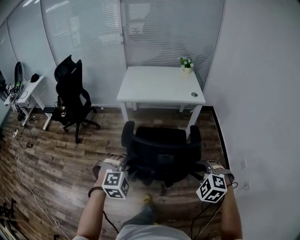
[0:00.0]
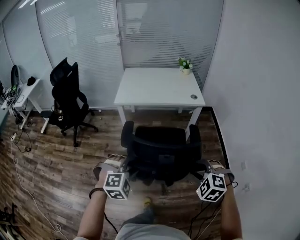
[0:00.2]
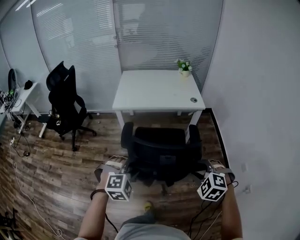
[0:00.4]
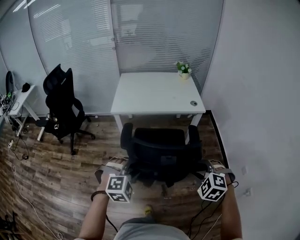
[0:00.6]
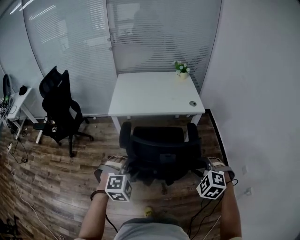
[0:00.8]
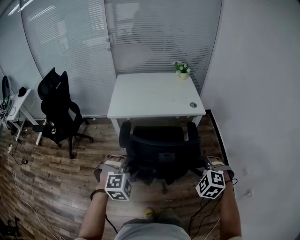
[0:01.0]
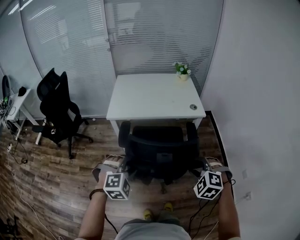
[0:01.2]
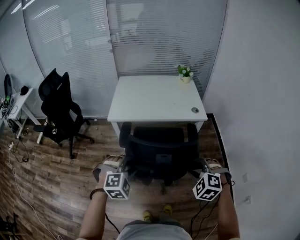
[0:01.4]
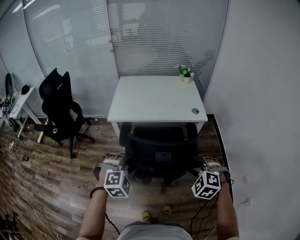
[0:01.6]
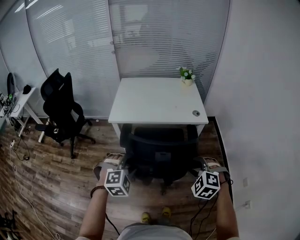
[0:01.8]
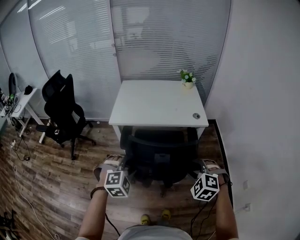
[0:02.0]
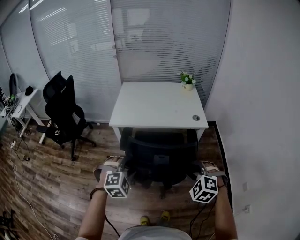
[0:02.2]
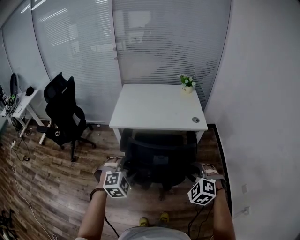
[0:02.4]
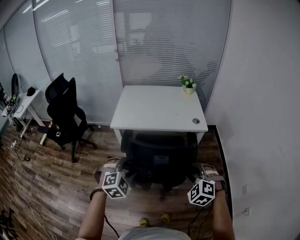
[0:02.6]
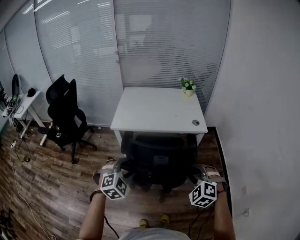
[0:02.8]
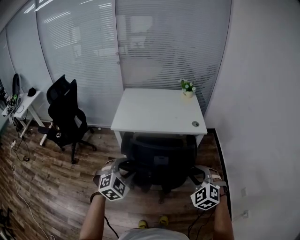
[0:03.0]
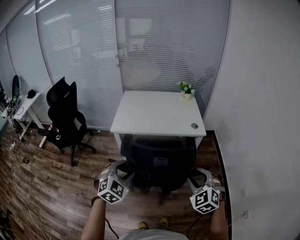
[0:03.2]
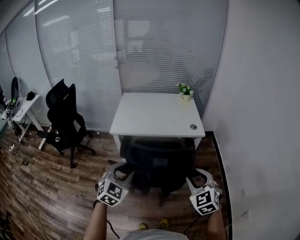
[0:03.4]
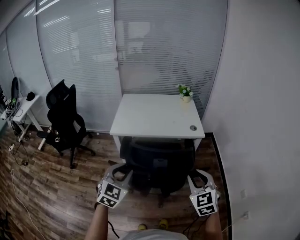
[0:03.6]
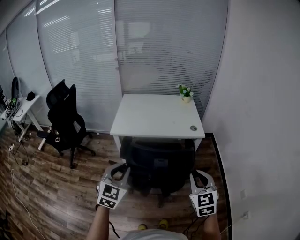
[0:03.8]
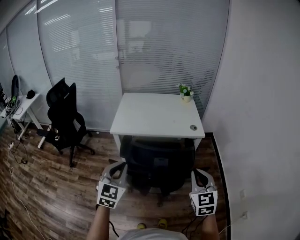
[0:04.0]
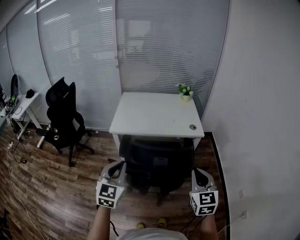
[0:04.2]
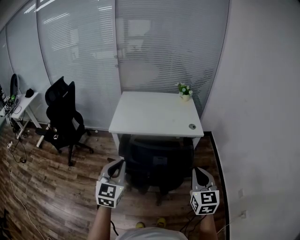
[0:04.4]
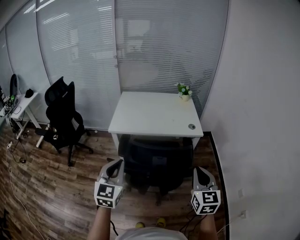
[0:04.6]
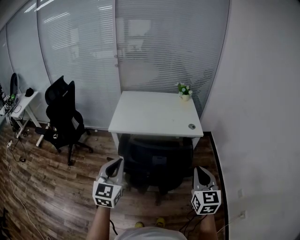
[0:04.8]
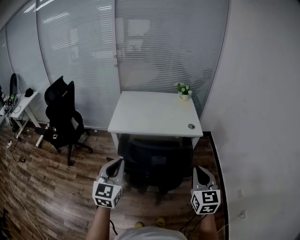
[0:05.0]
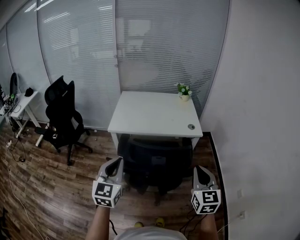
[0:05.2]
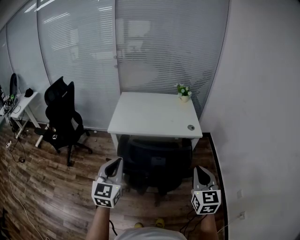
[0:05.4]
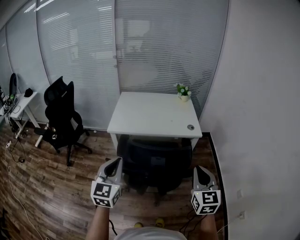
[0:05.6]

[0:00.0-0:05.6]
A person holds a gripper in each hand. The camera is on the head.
0:00.0 to 0:01.4: Both grippers travel together forward, about 25 cm.
0:01.4 to 0:02.8: The grippers make only small movements.
0:02.8 to 0:04.2: Both grippers travel together upward, some 10 cm. The left gripper swivels some 50 degrees, and closes up; the right gripper twists approximately 50 degrees clockwise, seen from behind, and closes.
0:04.2 to 0:05.6: There are only small adjustments of the grippers.

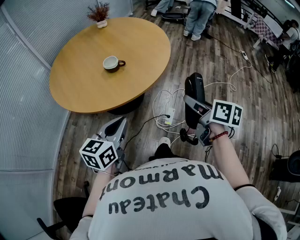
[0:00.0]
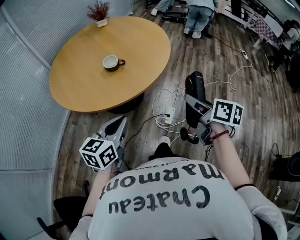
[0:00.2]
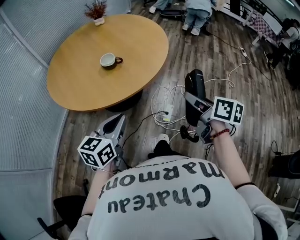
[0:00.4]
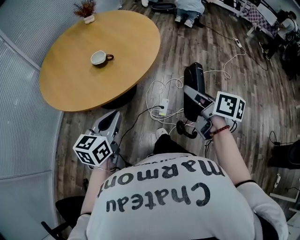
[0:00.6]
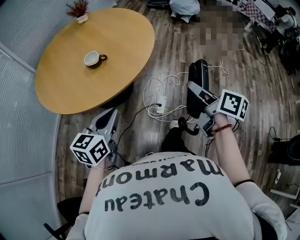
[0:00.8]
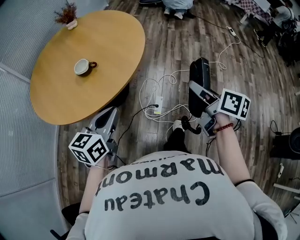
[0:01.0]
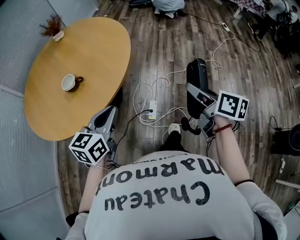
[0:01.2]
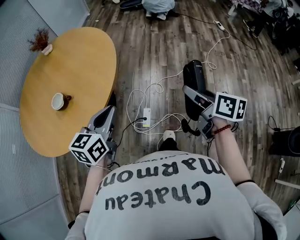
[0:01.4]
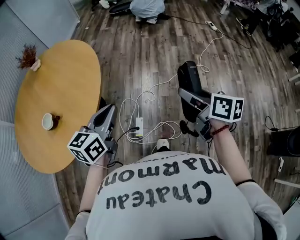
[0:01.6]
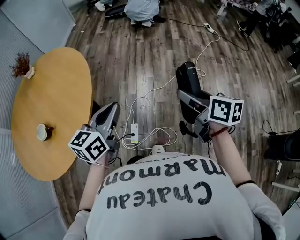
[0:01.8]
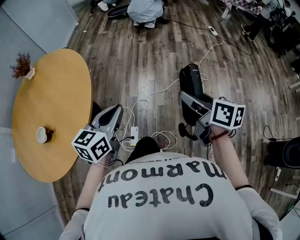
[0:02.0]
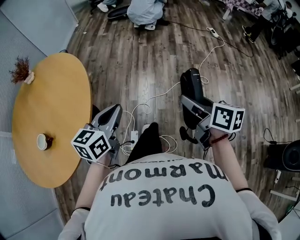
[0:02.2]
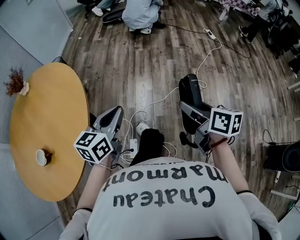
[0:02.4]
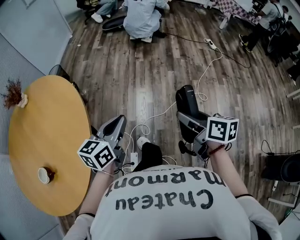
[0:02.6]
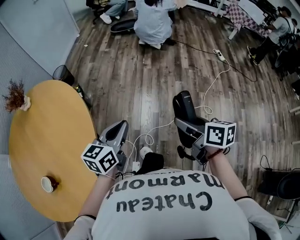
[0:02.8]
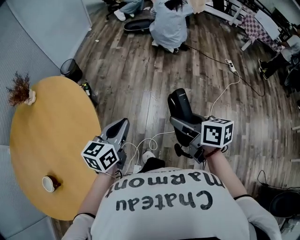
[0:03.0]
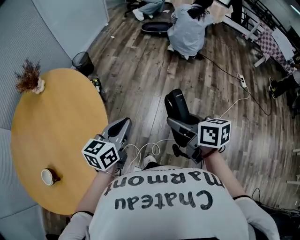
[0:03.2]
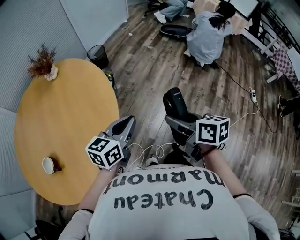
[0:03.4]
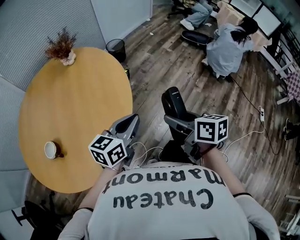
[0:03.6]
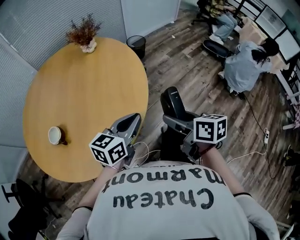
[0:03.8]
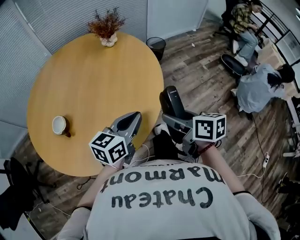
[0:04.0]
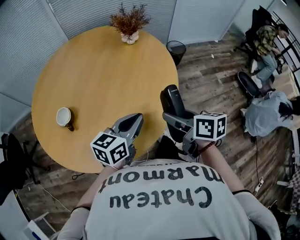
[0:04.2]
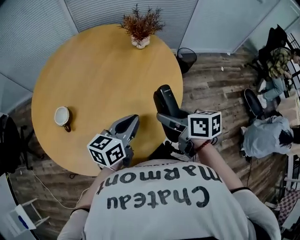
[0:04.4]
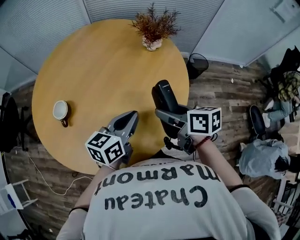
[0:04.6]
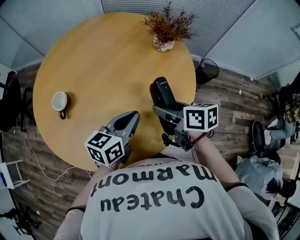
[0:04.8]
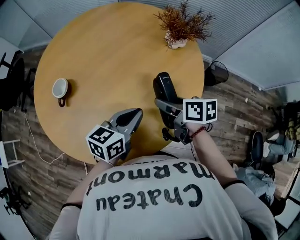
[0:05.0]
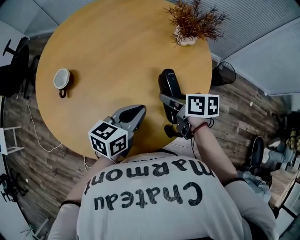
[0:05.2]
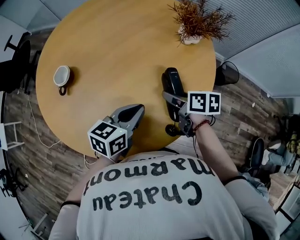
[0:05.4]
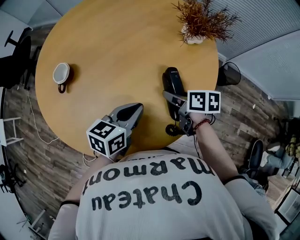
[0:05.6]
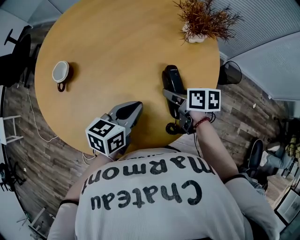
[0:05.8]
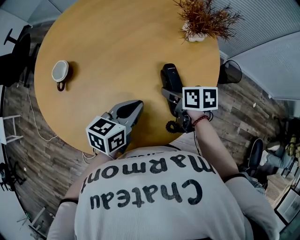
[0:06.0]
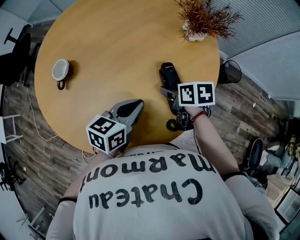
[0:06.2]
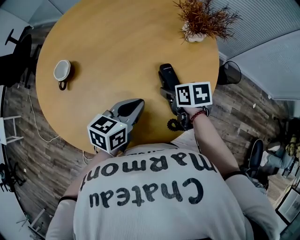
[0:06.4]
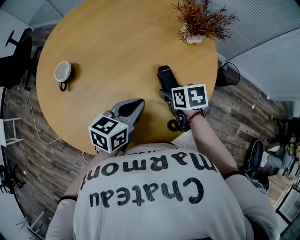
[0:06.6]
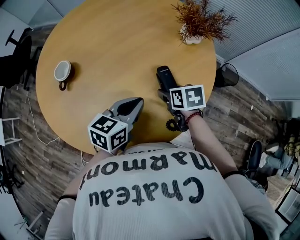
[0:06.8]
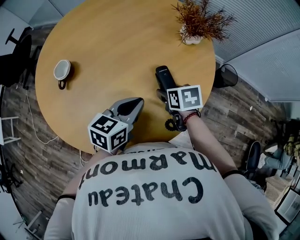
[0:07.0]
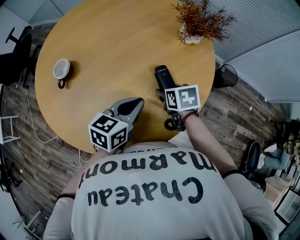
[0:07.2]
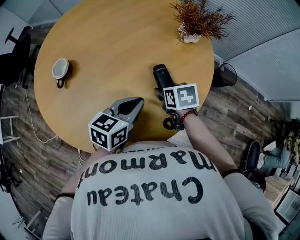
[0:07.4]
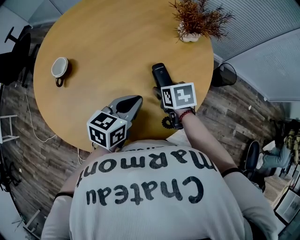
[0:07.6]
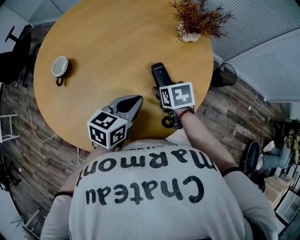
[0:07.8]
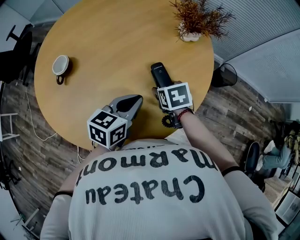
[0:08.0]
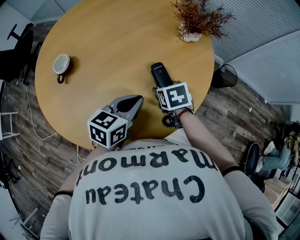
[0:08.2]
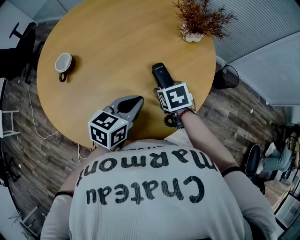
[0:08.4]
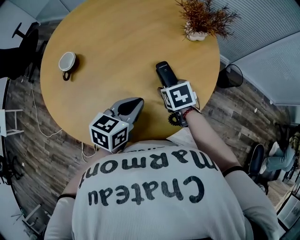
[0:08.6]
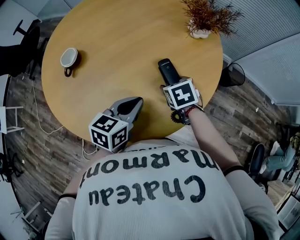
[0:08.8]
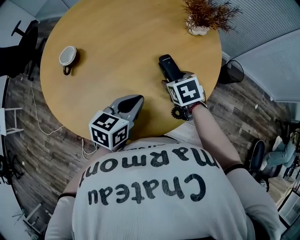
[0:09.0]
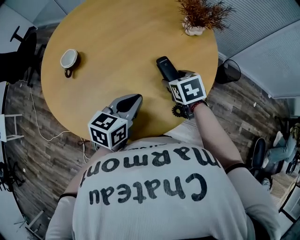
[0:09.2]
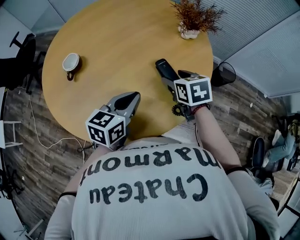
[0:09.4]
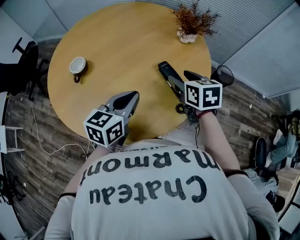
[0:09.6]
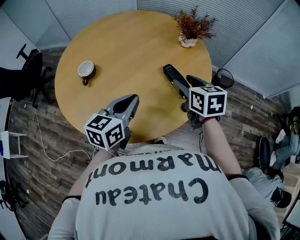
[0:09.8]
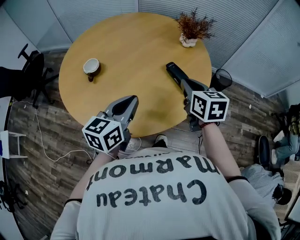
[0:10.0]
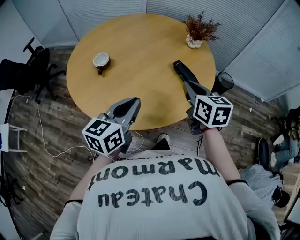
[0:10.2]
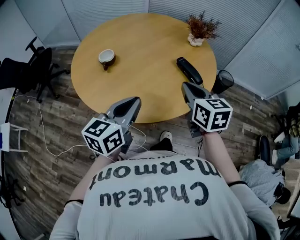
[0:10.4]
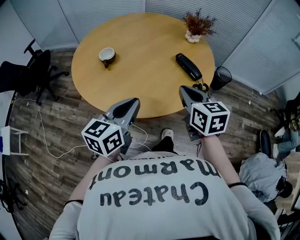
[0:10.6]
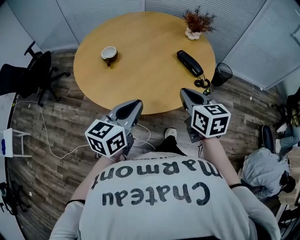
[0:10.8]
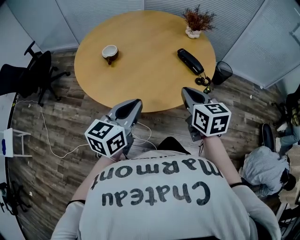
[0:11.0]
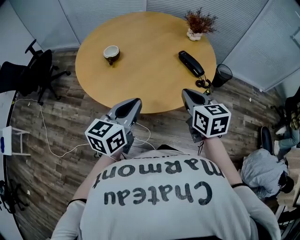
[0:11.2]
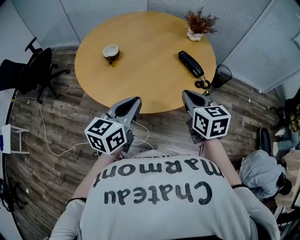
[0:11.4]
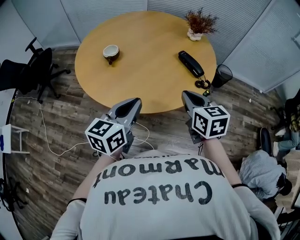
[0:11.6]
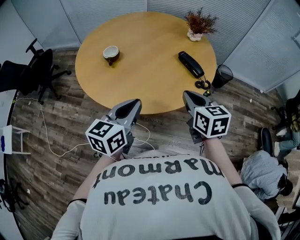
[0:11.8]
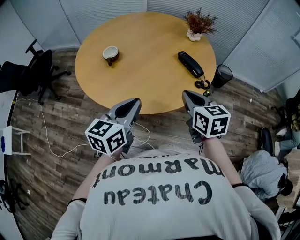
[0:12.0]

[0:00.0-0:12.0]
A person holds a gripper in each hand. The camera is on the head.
0:00.0 to 0:01.6: Both grippers move to the right and forward, some 35 cm.
0:01.6 to 0:03.0: Both grippers travel together forward, some 40 cm.
0:03.0 to 0:04.4: The right gripper shifts by some 50 cm, and rotates some 70 degrees; the left gripper changes place by some 35 cm, and turns by some 60 degrees.
0:04.4 to 0:06.0: The right gripper changes place by some 25 cm, and swivels some 30 degrees; the left gripper moves about 10 cm, and rotates some 30 degrees.
0:06.0 to 0:07.6: The right gripper turns by some 20 degrees.
0:07.6 to 0:09.0: There are only small adjustments of the grippers.
0:09.0 to 0:10.4: The right gripper travels upward and backward by about 30 cm, tips its fingers upward by roughly 30 degrees, and closes. Meanwhile the left gripper travels backward, to the left and upward by approximately 25 cm, and rotates roughly 20 degrees.
0:10.4 to 0:12.0: The right gripper heads backward, covering roughly 5 cm, while the left gripper moves about 5 cm.

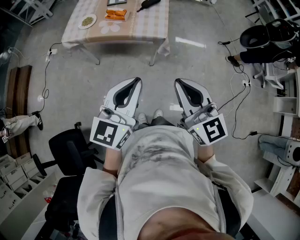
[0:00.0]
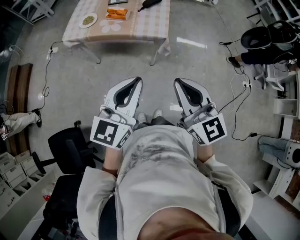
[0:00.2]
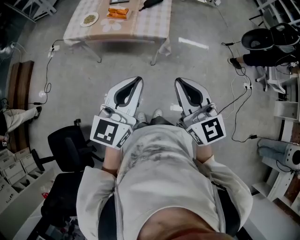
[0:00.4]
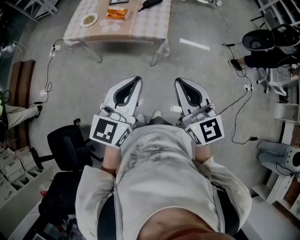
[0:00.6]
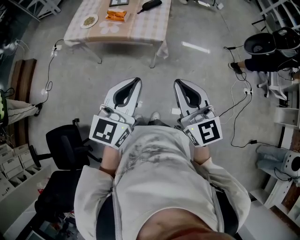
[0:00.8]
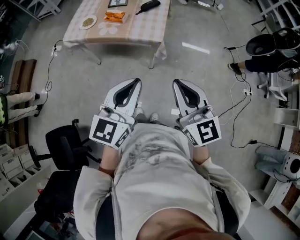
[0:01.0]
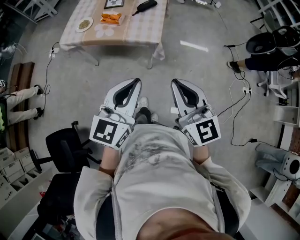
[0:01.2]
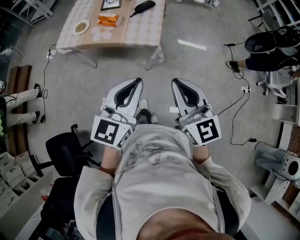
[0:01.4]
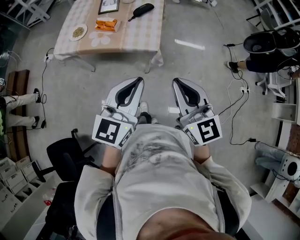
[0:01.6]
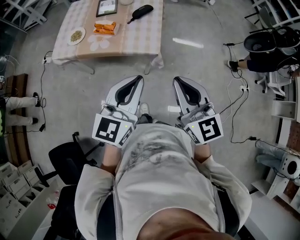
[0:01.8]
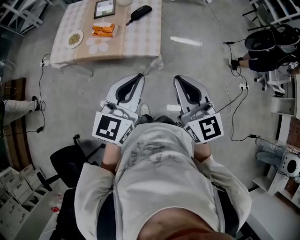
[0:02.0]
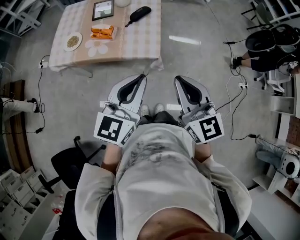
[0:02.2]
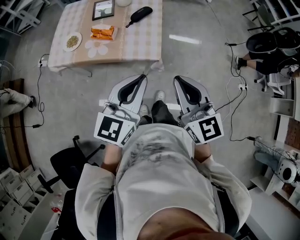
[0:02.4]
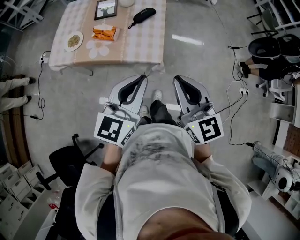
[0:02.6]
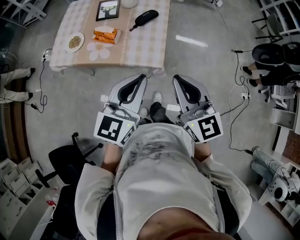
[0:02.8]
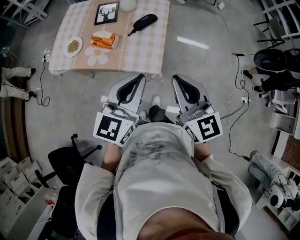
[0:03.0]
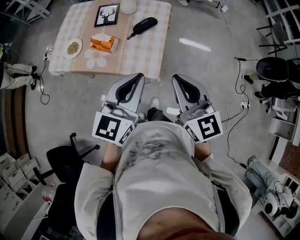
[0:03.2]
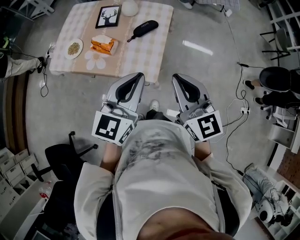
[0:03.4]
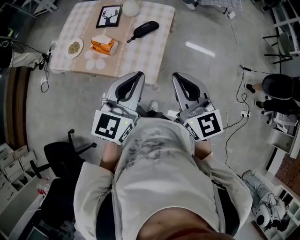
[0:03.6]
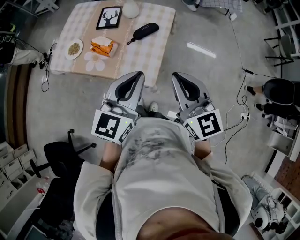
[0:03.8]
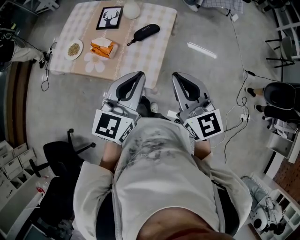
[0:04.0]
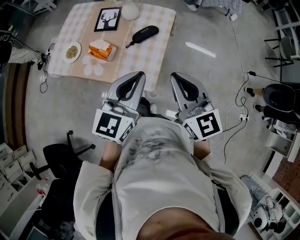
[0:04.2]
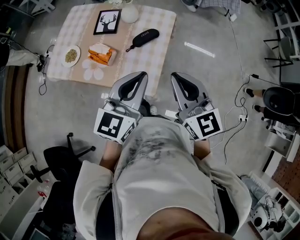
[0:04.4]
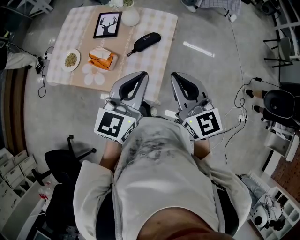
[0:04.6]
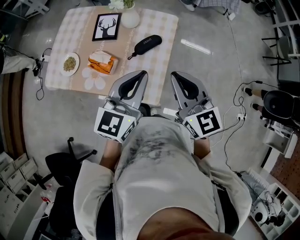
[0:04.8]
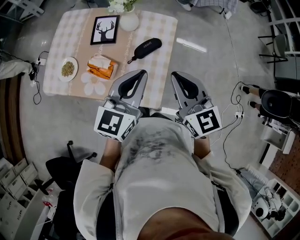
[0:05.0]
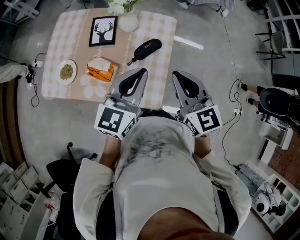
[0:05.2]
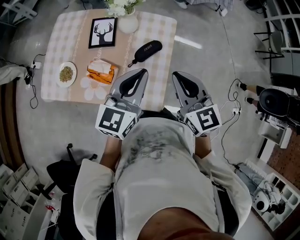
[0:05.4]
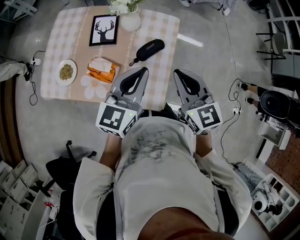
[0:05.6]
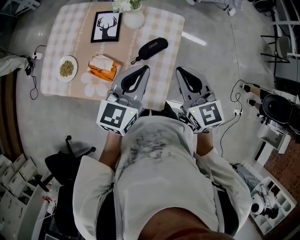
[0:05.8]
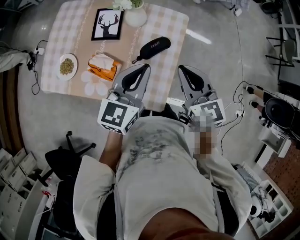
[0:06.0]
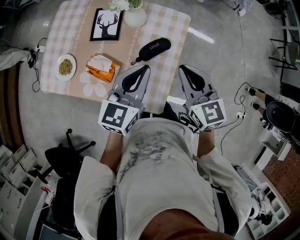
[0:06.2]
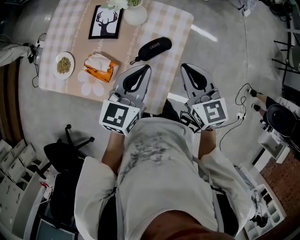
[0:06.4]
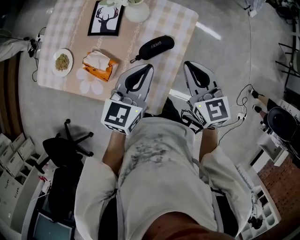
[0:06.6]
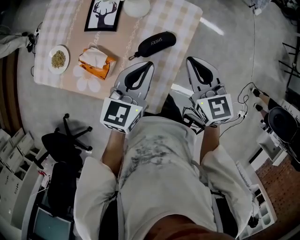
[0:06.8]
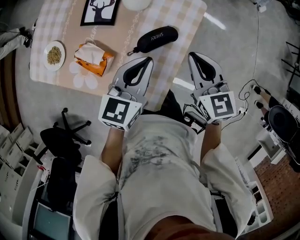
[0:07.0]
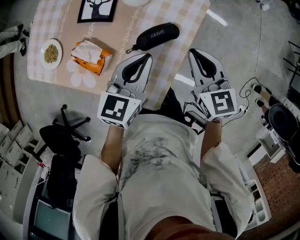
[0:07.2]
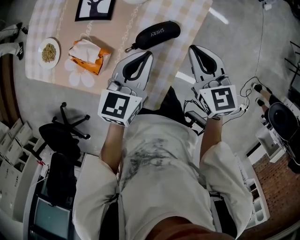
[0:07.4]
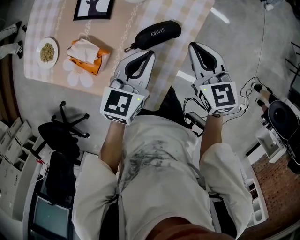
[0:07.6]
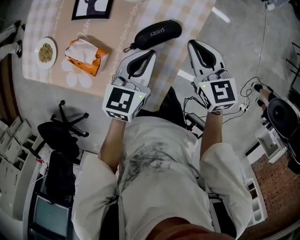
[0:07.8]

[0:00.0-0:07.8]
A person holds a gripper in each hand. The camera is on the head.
0:00.0 to 0:01.6: Both grippers travel together forward and to the right, approximately 15 cm.
0:01.6 to 0:03.2: The grippers both shift forward by about 25 cm.
0:03.2 to 0:04.6: The grippers both shift forward by about 15 cm.
0:04.6 to 0:06.2: Both grippers travel together forward and downward, roughly 15 cm.
0:06.2 to 0:07.8: The left gripper shifts approximately 15 cm downward, while the right gripper heads downward and forward, covering some 15 cm.
